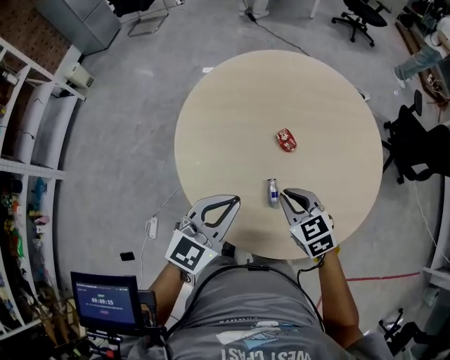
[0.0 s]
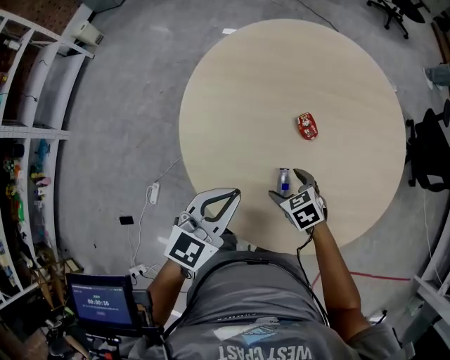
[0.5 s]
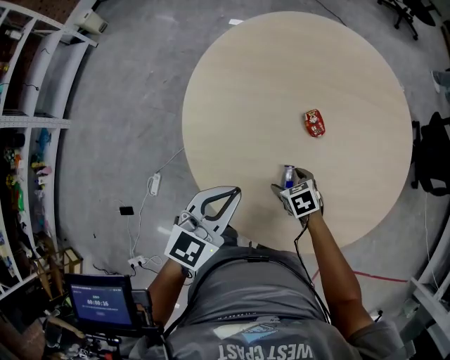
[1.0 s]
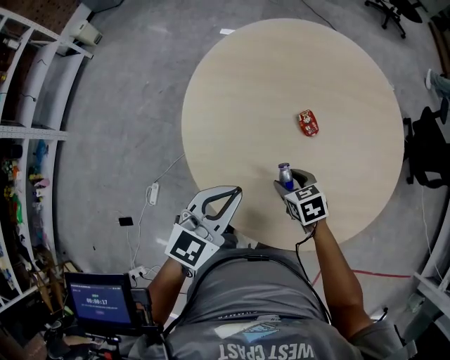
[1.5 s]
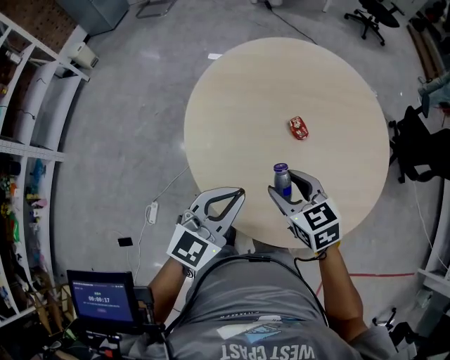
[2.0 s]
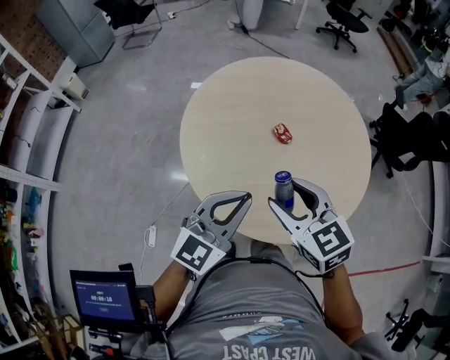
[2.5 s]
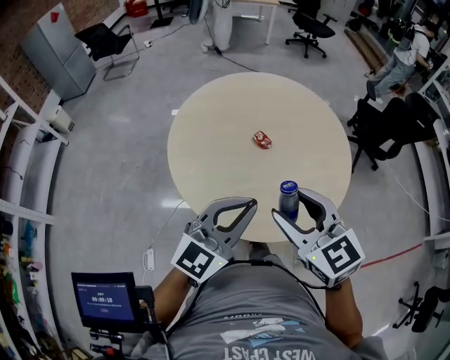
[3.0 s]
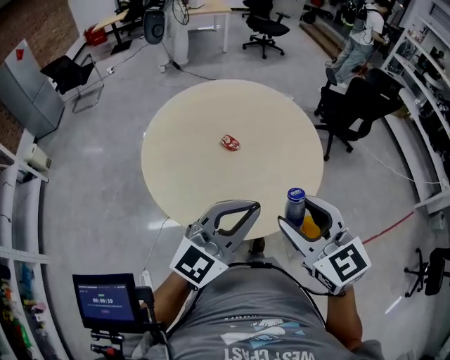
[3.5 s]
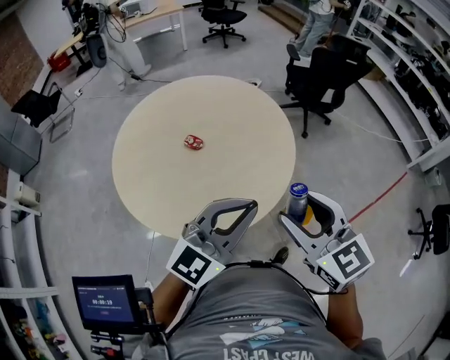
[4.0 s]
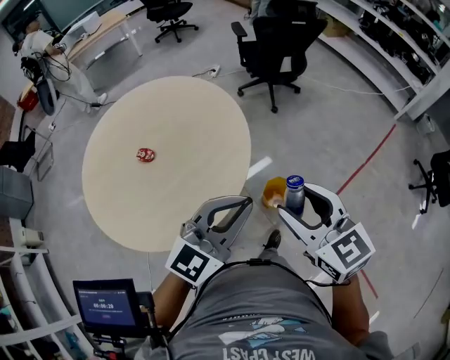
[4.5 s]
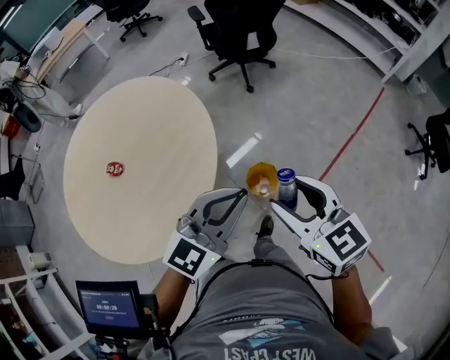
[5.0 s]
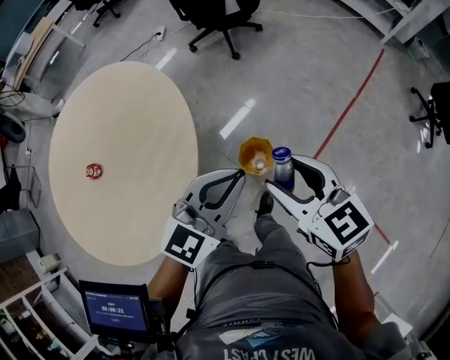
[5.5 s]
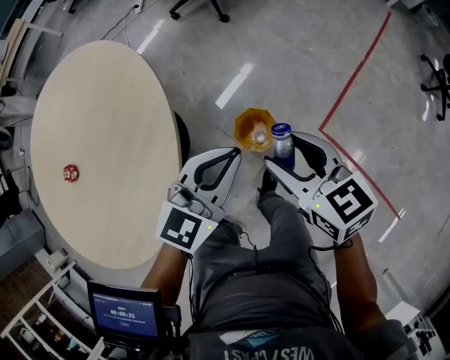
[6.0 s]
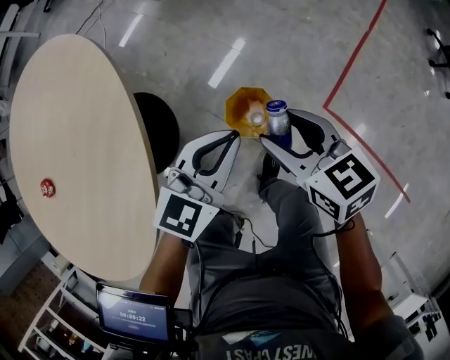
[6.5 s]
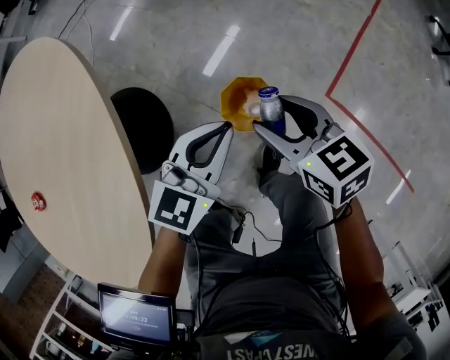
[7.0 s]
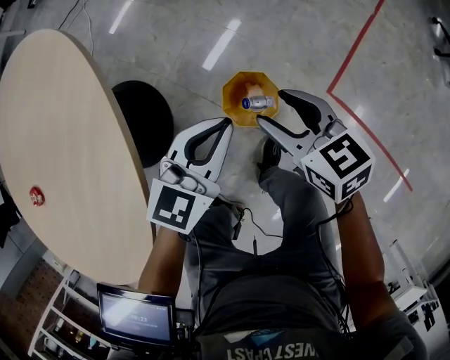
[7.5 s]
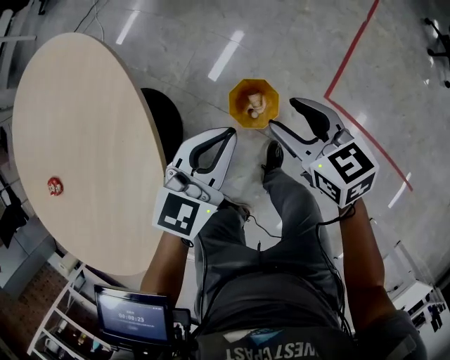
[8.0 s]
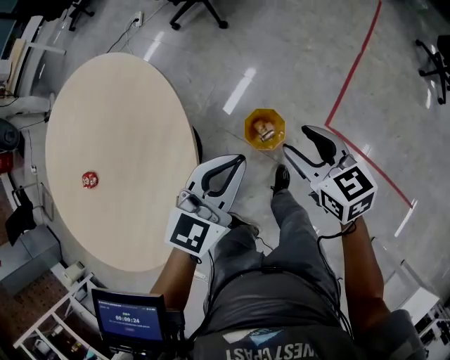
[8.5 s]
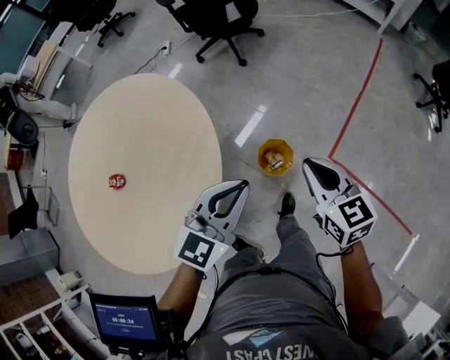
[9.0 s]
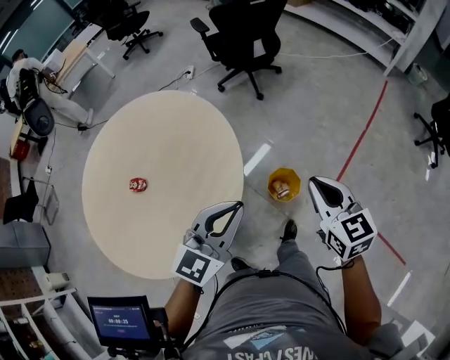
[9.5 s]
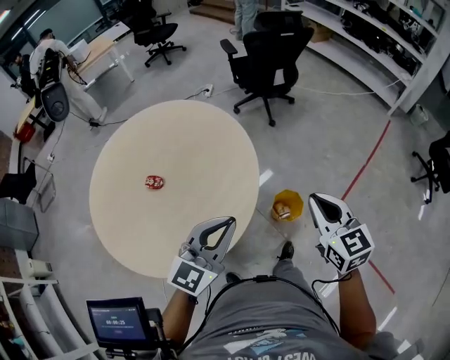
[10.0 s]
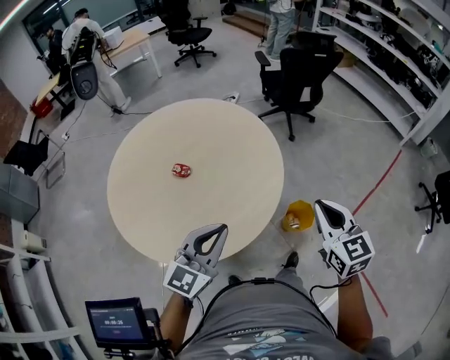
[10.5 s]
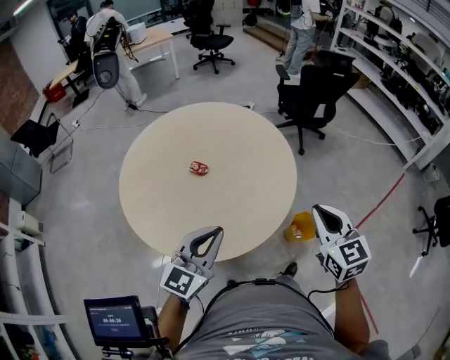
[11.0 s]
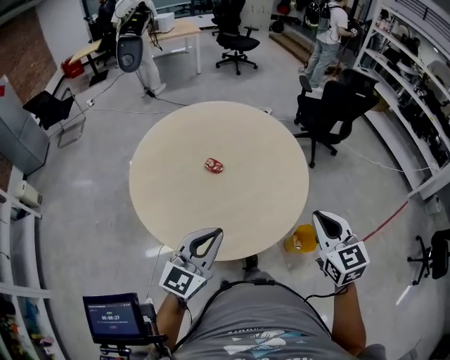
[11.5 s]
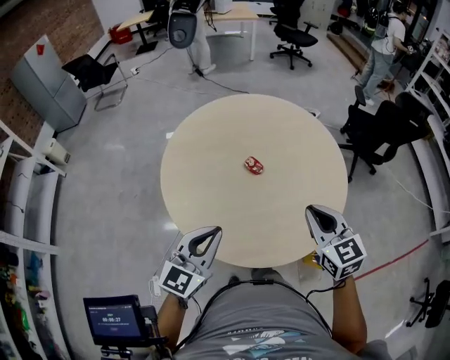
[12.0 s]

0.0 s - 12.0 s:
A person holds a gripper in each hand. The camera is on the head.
0.0 s - 2.0 s: The right gripper reaches some 20 cm downward, then returns, and opens up.
2.0 s - 4.0 s: The left gripper shifts by about 30 cm, and turns by about 50 degrees. Meanwhile the right gripper shifts by some 40 cm, and changes its angle by about 40 degrees.
4.0 s - 6.0 s: Both grippers are carried to the right and forward, about 50 cm. The grippers both shift downward by approximately 30 cm. The right gripper turns by roughly 40 degrees; the left gripper turns by some 30 degrees.
6.0 s - 8.0 s: The grippers both shift downward by approximately 20 cm.
8.0 s - 10.0 s: The right gripper goes some 40 cm upward and backward, changes its angle by about 20 degrees, and closes up, while the left gripper travels upward, backward and to the left by approximately 50 cm, and swivels about 30 degrees.
10.0 s - 12.0 s: The right gripper moves roughly 35 cm, and swivels approximately 40 degrees, while the left gripper moves roughly 35 cm, and rotates some 40 degrees.

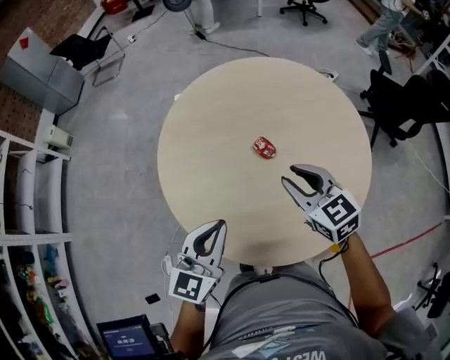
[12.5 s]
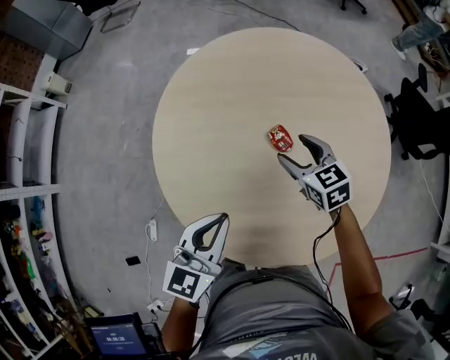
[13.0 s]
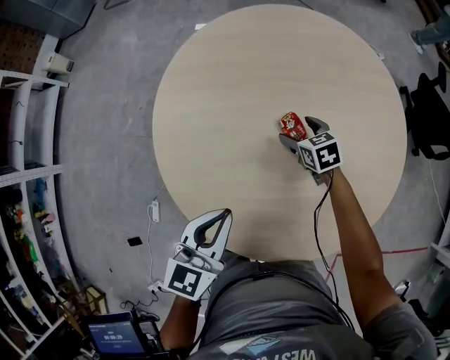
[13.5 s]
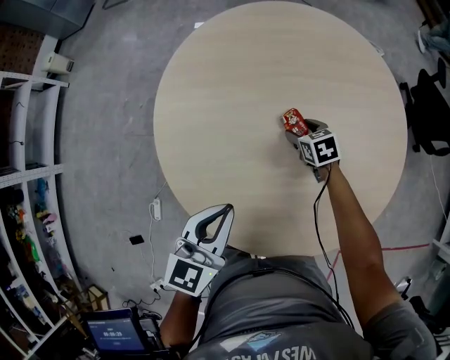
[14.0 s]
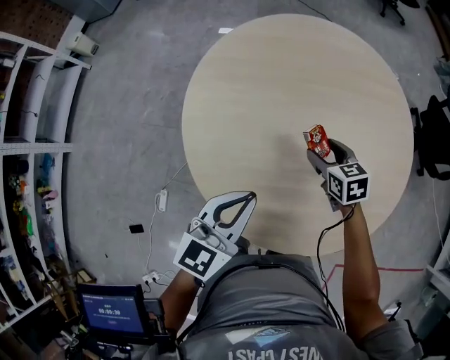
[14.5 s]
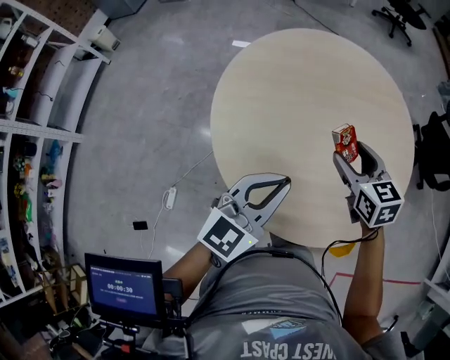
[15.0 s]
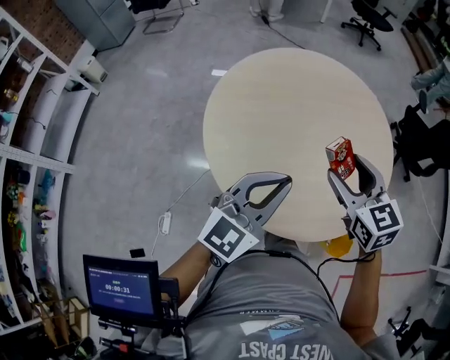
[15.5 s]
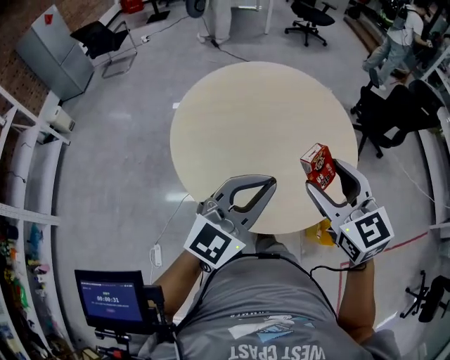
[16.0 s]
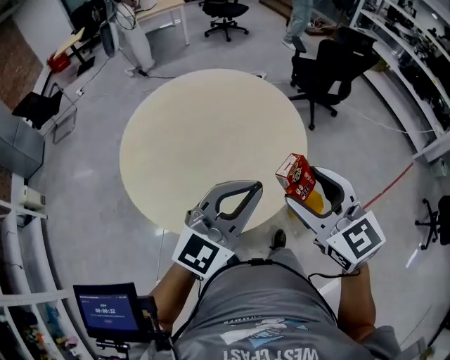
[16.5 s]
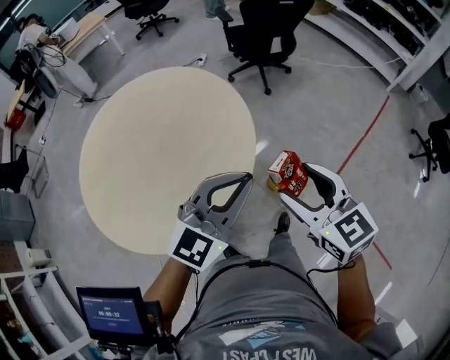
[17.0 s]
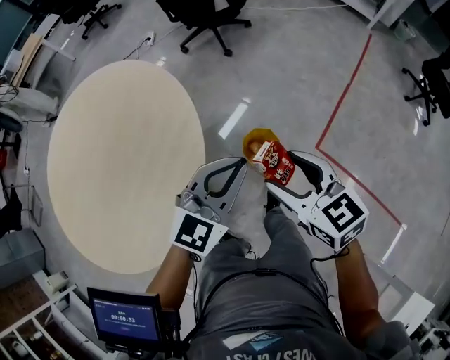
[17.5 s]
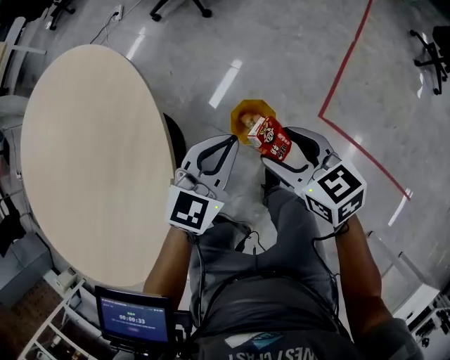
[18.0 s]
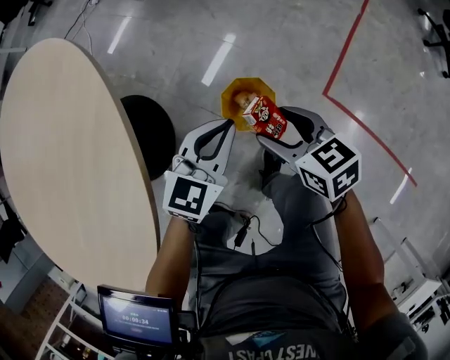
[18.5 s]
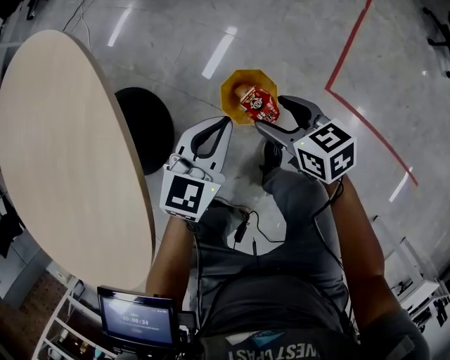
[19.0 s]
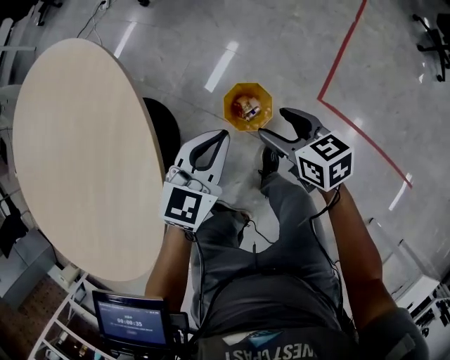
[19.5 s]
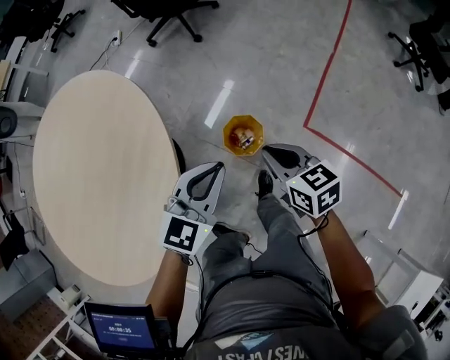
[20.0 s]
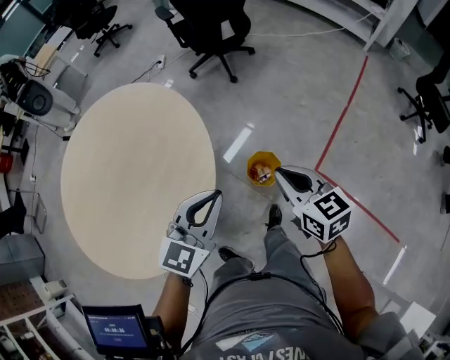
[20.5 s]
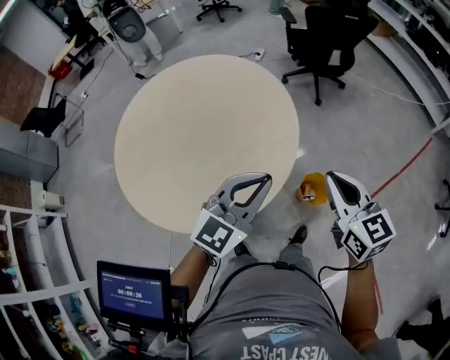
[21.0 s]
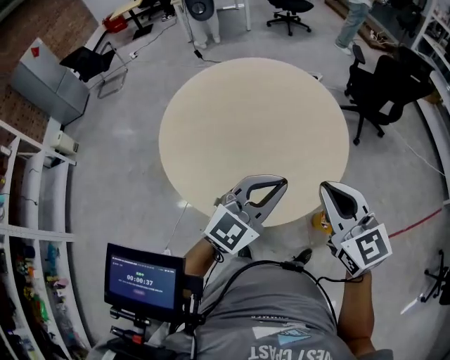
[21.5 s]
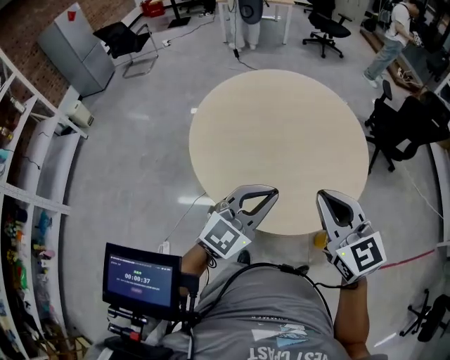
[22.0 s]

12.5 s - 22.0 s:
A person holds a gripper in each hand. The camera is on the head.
12.5 s - 14.5 s: The left gripper is displaced downward by roughly 5 cm. The right gripper is displaced downward and forward by about 20 cm, swivels roughly 20 degrees, and opens its fingers.
14.5 s - 16.5 s: The left gripper moves approximately 35 cm, and swivels approximately 50 degrees. Meanwhile the right gripper moves some 50 cm, and changes its angle by roughly 40 degrees.
16.5 s - 18.0 s: The two grippers travel together, to the right and forward, some 50 cm. The grippers both shift downward by approximately 40 cm. The right gripper changes its angle by some 40 degrees; the left gripper rotates roughly 30 degrees.
18.0 s - 20.0 s: The right gripper goes downward and returns, some 25 cm each way, and closes. The left gripper moves roughly 20 cm downward and comes back.
20.0 s - 22.0 s: The two grippers travel together, approximately 50 cm. The right gripper turns by approximately 70 degrees. Meanwhile the left gripper turns by some 50 degrees.

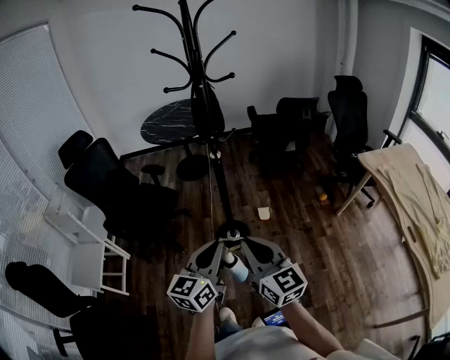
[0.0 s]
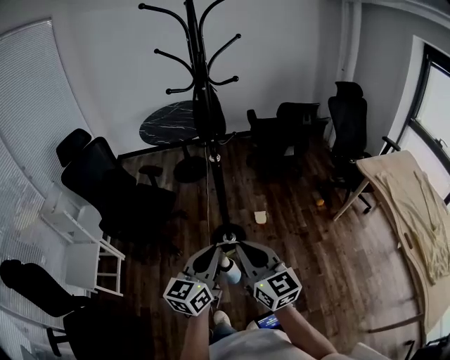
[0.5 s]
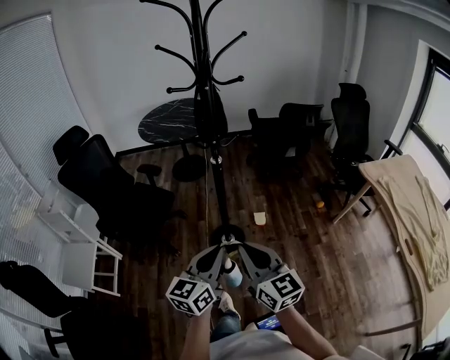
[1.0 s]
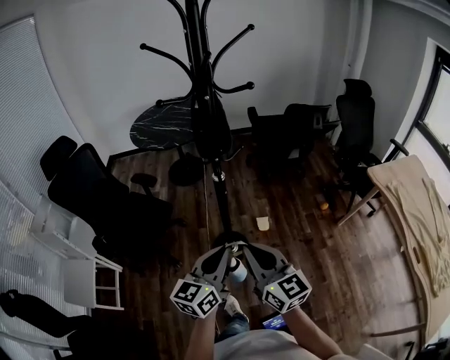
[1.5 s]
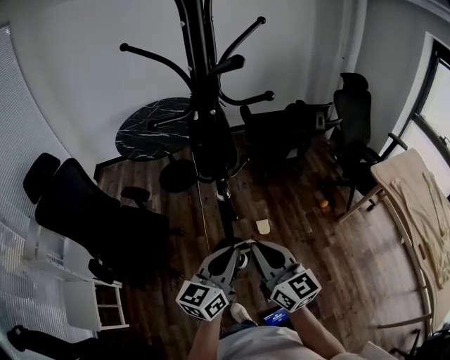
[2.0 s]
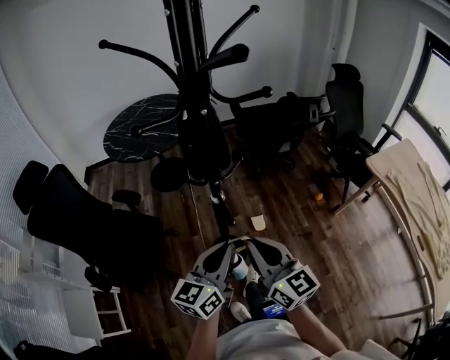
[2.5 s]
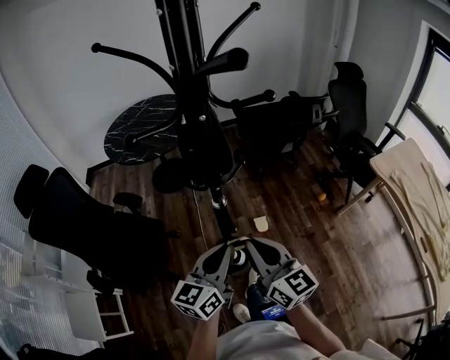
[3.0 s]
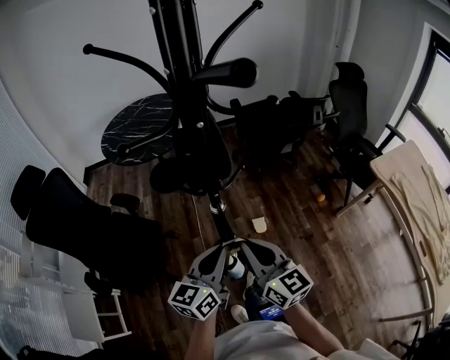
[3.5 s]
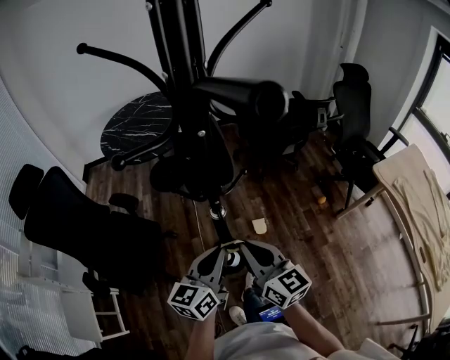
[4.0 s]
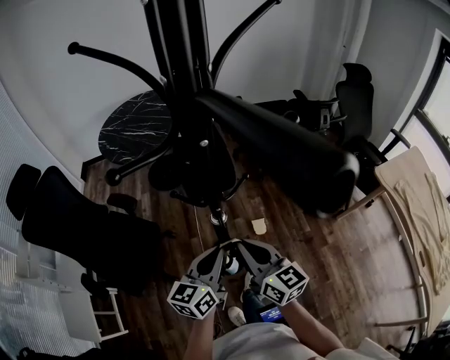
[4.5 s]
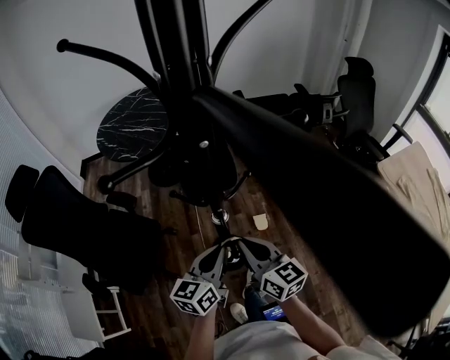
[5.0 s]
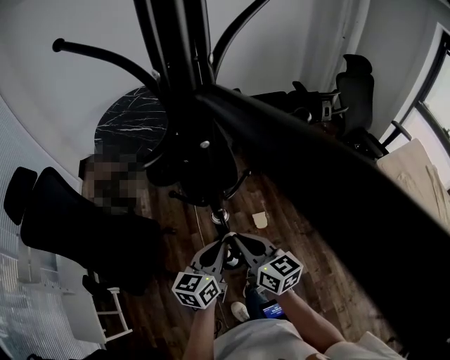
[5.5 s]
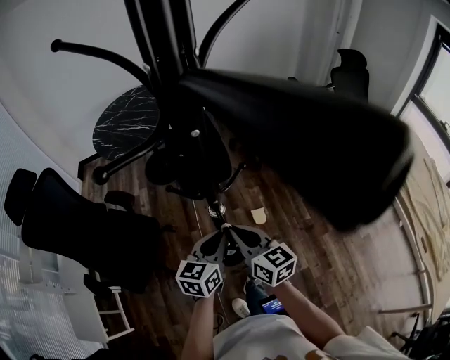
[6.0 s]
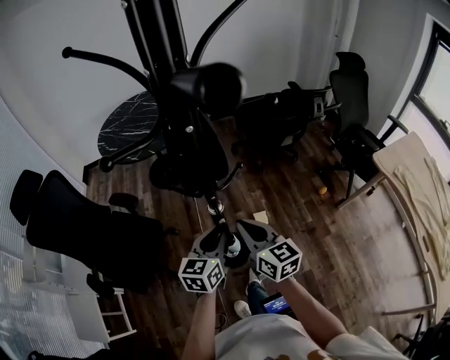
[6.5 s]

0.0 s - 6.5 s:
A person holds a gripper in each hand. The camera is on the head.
0.0 s - 2.0 s: Both grippers move forward, roughly 25 cm.
2.0 s - 4.5 s: Both grippers travel together forward and downward, roughly 15 cm.
4.5 s - 6.5 s: The grippers make only small movements.
